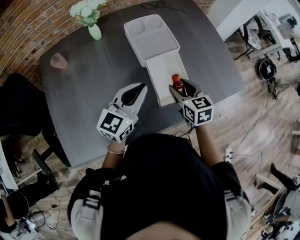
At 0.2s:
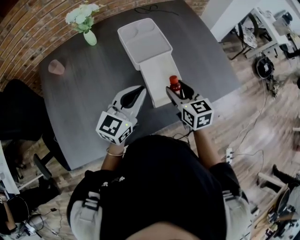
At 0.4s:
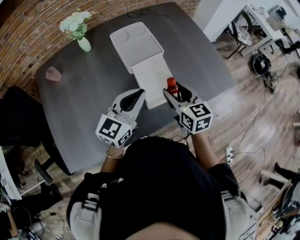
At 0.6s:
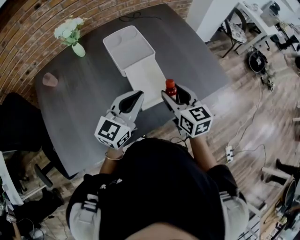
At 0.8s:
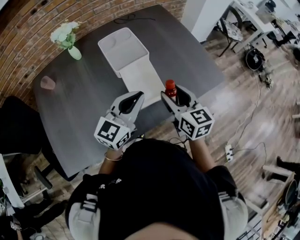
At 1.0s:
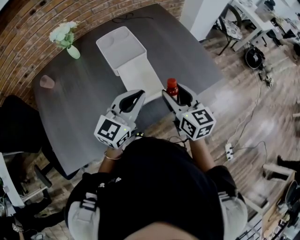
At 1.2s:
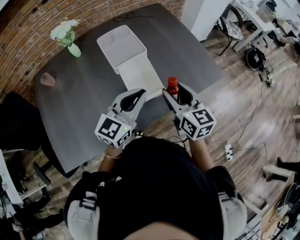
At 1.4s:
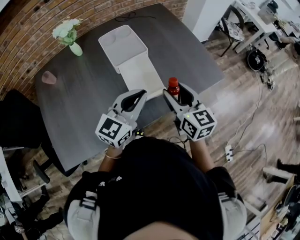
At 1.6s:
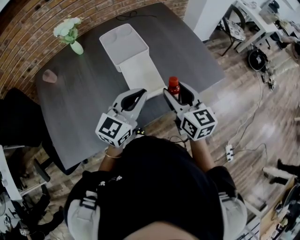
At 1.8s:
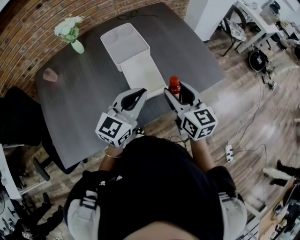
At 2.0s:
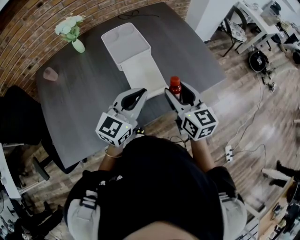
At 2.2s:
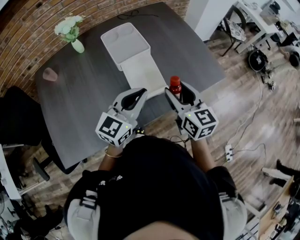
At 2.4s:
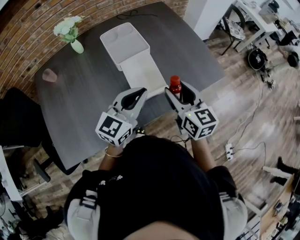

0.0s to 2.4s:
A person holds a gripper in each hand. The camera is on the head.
0.0s to 1.2s: The left gripper is displaced to the right by roughly 15 cm. Meanwhile the right gripper is displaced to the right, upward and backward by some 15 cm, and changes its angle by roughly 20 degrees.
1.2s to 2.4s: Neither gripper changes place.

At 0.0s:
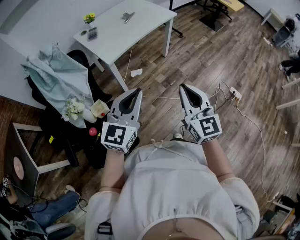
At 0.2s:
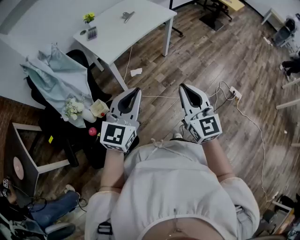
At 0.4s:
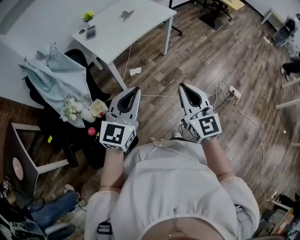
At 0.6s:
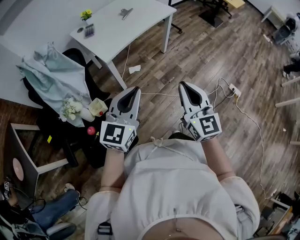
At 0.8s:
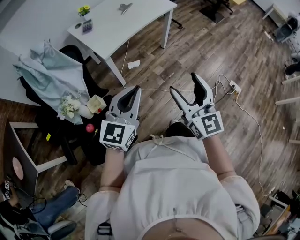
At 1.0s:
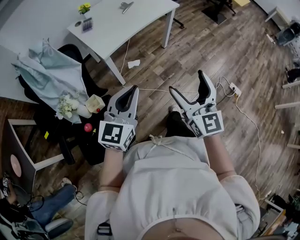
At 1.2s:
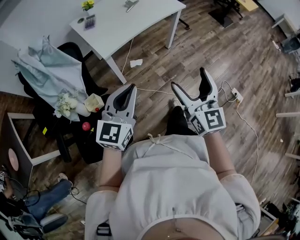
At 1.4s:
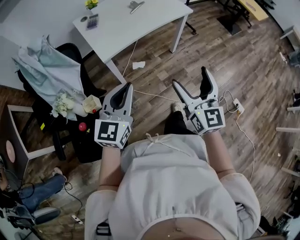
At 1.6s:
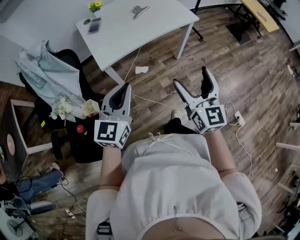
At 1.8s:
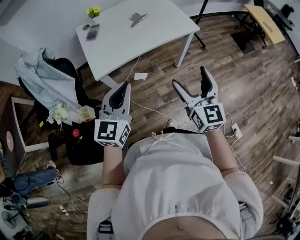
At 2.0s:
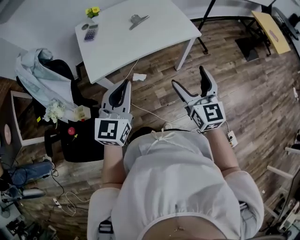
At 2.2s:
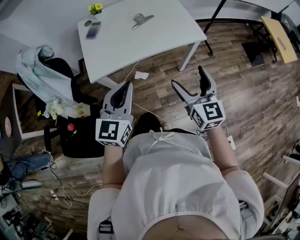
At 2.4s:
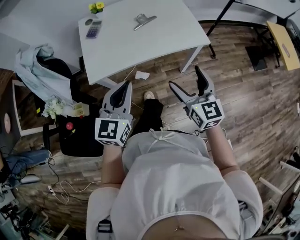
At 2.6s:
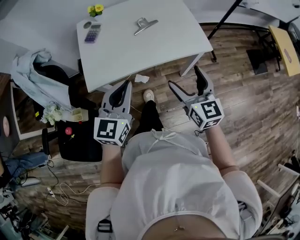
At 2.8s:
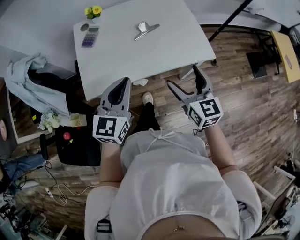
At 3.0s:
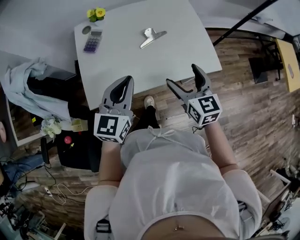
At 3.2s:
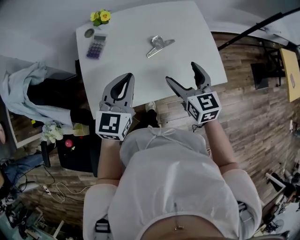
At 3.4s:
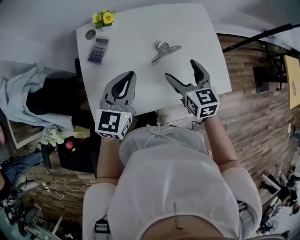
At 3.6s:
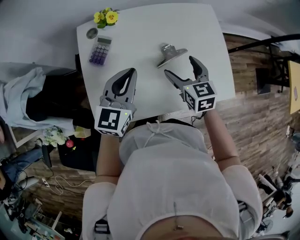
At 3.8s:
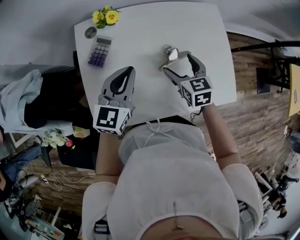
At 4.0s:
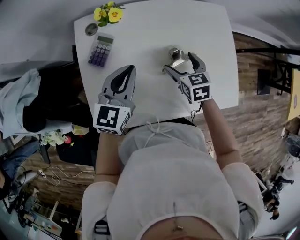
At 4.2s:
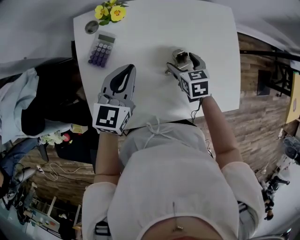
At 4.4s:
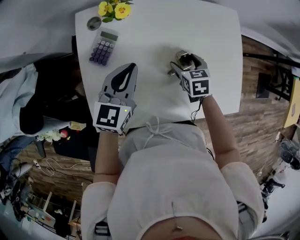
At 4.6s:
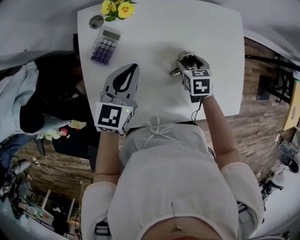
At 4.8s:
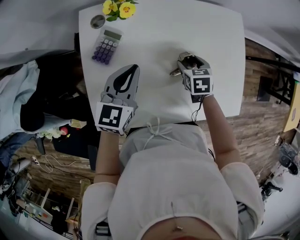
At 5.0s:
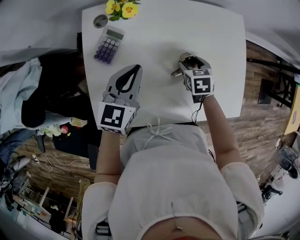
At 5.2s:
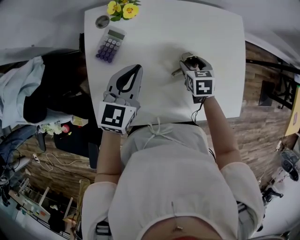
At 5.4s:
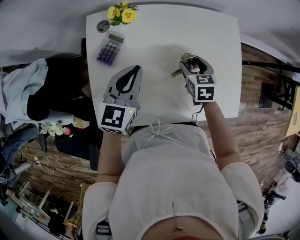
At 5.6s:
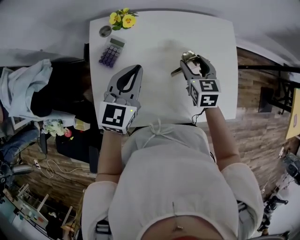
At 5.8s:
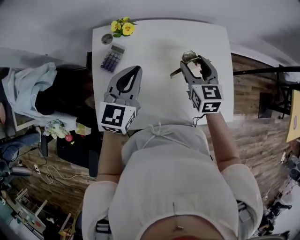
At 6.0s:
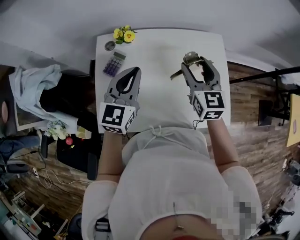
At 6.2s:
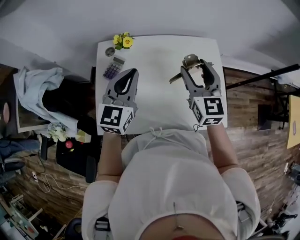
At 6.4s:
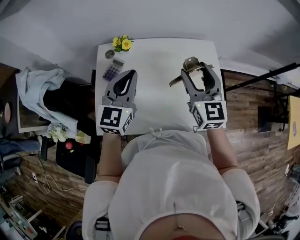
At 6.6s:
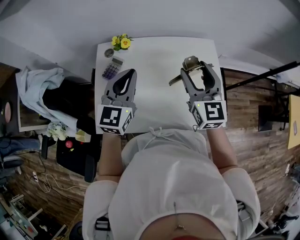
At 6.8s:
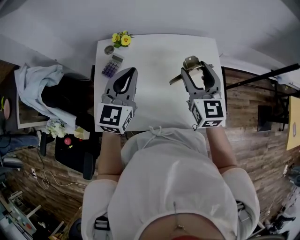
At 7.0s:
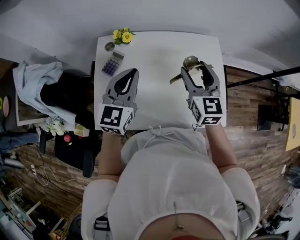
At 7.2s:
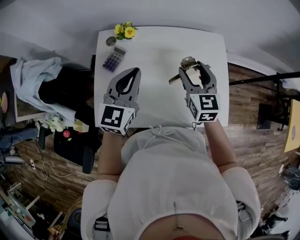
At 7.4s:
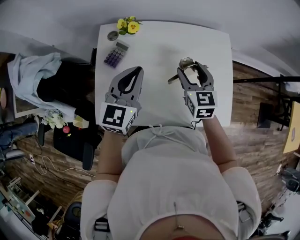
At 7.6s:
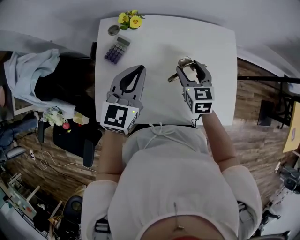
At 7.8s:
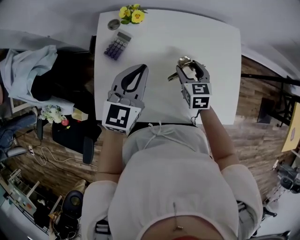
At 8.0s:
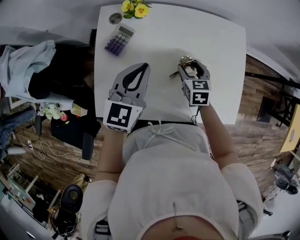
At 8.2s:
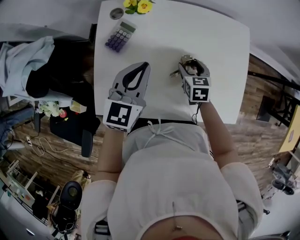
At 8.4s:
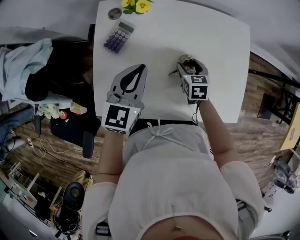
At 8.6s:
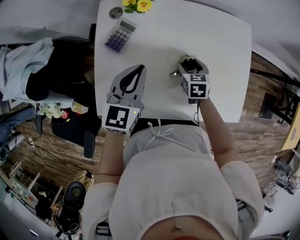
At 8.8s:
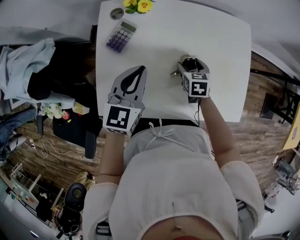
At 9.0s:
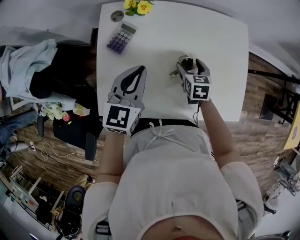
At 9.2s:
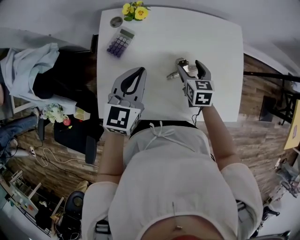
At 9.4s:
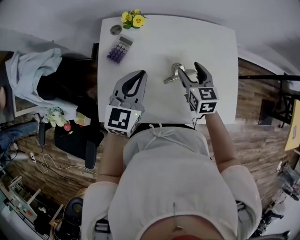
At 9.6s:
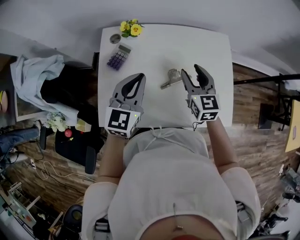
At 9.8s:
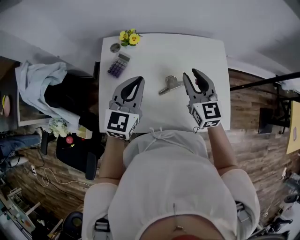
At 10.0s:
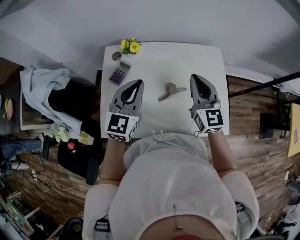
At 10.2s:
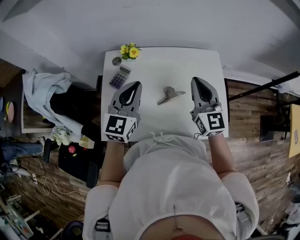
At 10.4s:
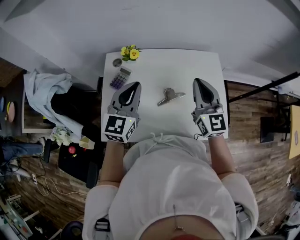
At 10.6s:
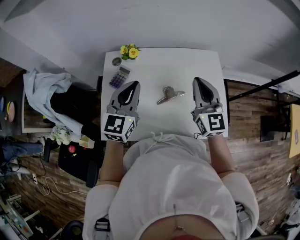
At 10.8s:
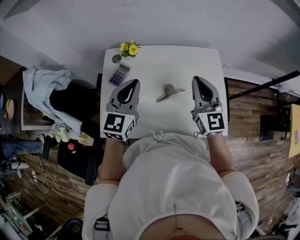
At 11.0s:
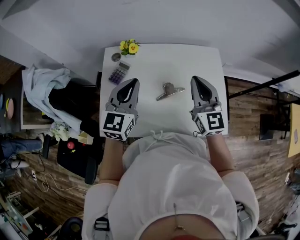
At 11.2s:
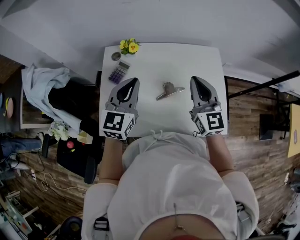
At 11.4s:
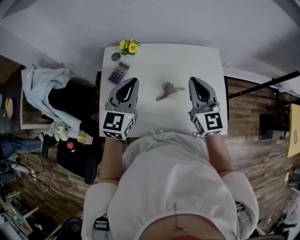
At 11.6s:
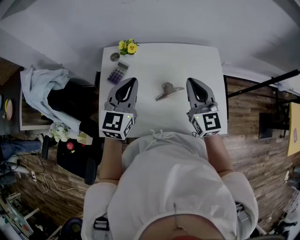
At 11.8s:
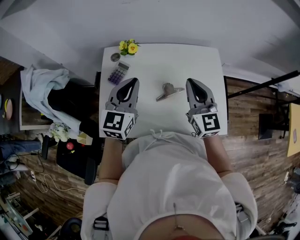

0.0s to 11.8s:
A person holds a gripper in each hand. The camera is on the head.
0.0s to 1.4s: Both grippers move forward, approximately 15 cm. The right gripper opens up.
1.4s to 3.0s: The two grippers travel together, forward, approximately 50 cm. The right gripper turns by some 40 degrees, while the left gripper rotates roughly 20 degrees.
3.0s to 4.4s: Both grippers travel together forward and downward, approximately 35 cm. The right gripper tips its fingers downward by roughly 40 degrees.
4.4s to 6.0s: The right gripper travels upward by about 25 cm, and tilts its fingers roughly 40 degrees upward. The left gripper shifts approximately 15 cm upward.
6.0s to 7.4s: The right gripper is displaced downward by some 10 cm.
7.4s to 8.8s: The left gripper shifts about 10 cm downward. The right gripper moves downward, roughly 20 cm, and changes its angle by some 30 degrees.
8.8s to 10.4s: The left gripper is displaced upward by roughly 15 cm; the right gripper shifts about 35 cm upward, tips its fingers upward by roughly 50 degrees, and closes.
10.4s to 11.8s: The grippers make only small movements.

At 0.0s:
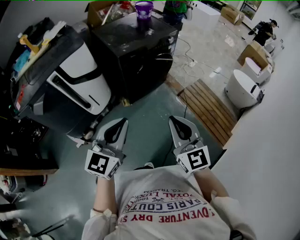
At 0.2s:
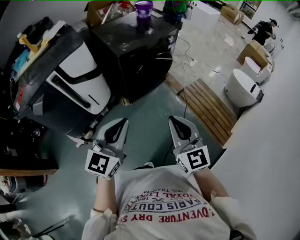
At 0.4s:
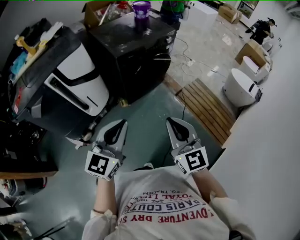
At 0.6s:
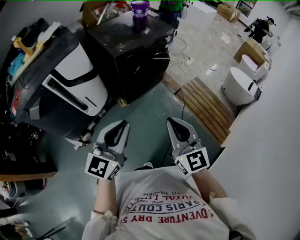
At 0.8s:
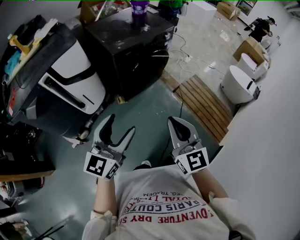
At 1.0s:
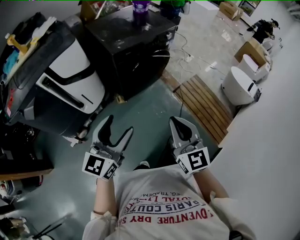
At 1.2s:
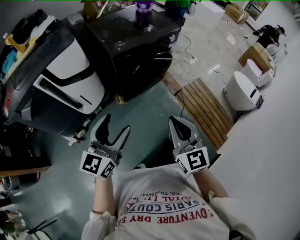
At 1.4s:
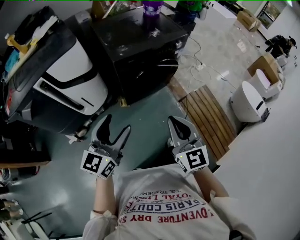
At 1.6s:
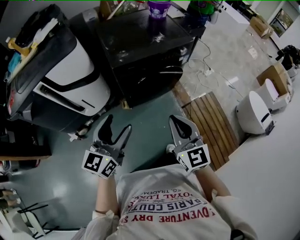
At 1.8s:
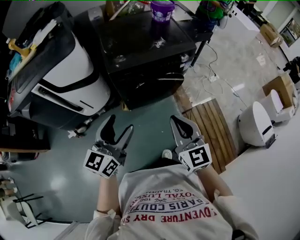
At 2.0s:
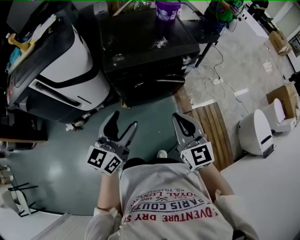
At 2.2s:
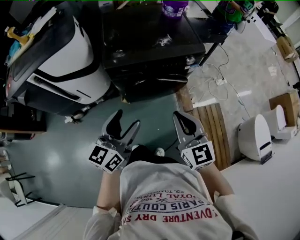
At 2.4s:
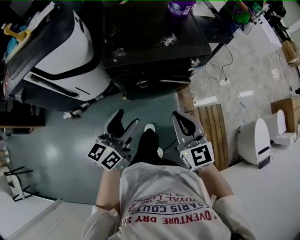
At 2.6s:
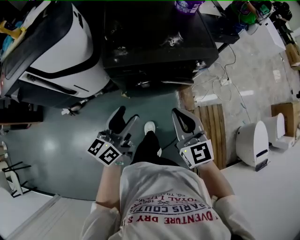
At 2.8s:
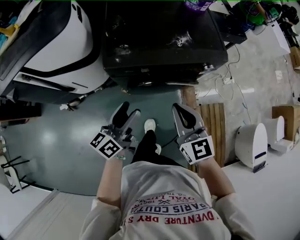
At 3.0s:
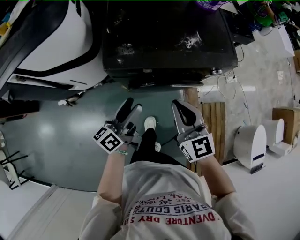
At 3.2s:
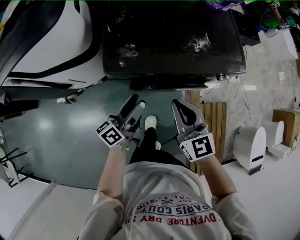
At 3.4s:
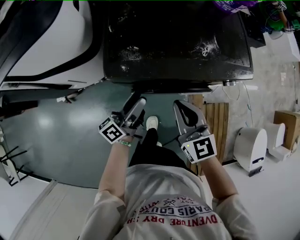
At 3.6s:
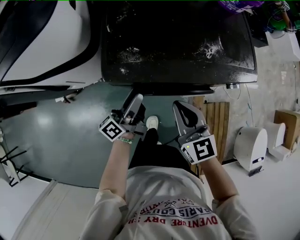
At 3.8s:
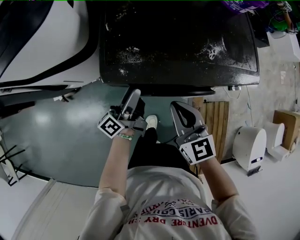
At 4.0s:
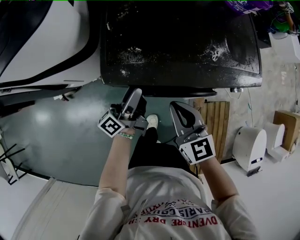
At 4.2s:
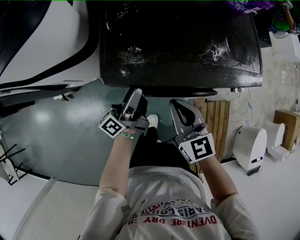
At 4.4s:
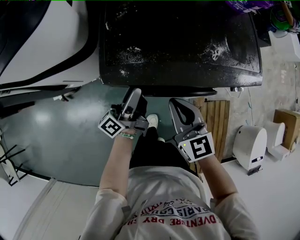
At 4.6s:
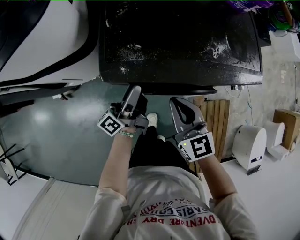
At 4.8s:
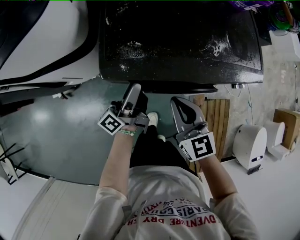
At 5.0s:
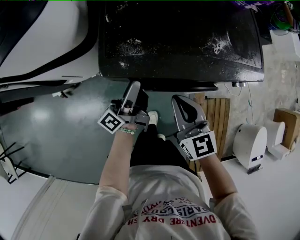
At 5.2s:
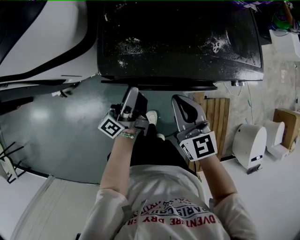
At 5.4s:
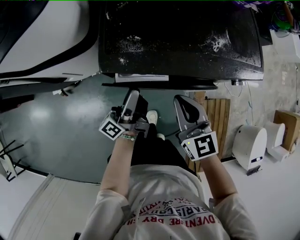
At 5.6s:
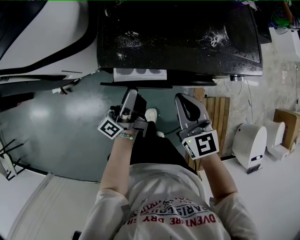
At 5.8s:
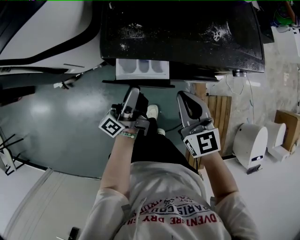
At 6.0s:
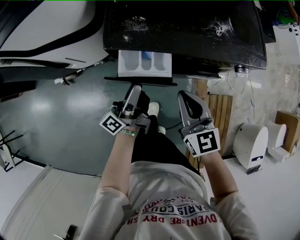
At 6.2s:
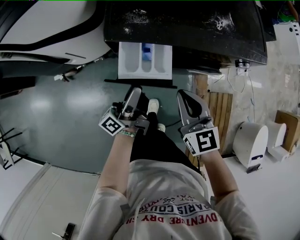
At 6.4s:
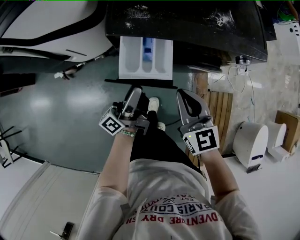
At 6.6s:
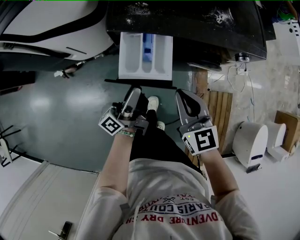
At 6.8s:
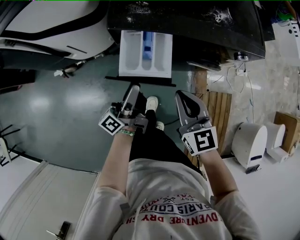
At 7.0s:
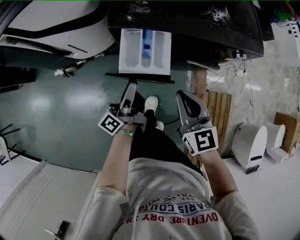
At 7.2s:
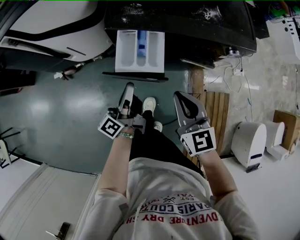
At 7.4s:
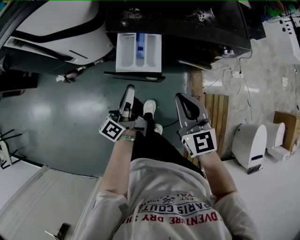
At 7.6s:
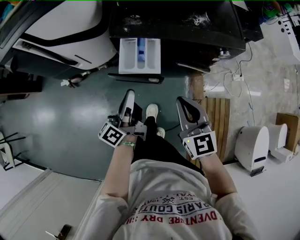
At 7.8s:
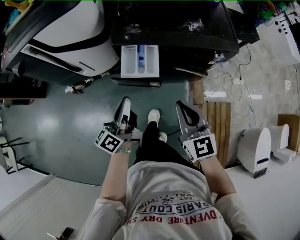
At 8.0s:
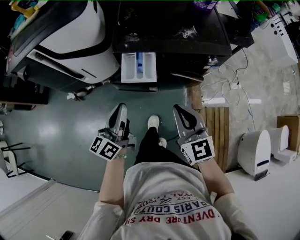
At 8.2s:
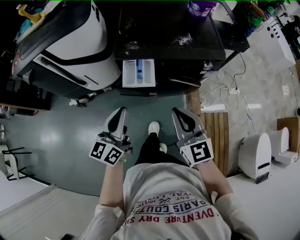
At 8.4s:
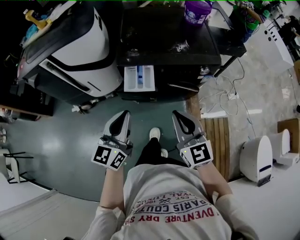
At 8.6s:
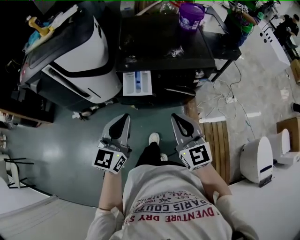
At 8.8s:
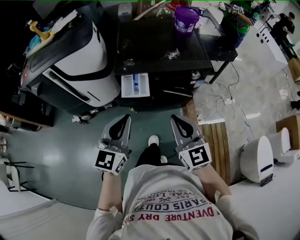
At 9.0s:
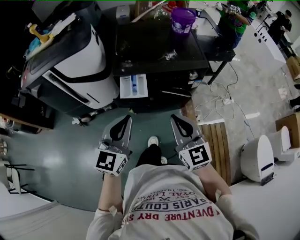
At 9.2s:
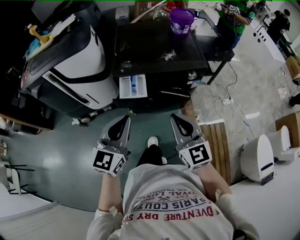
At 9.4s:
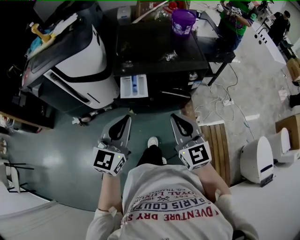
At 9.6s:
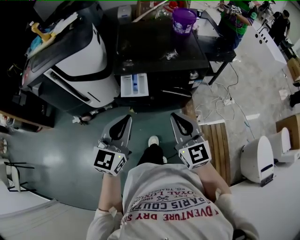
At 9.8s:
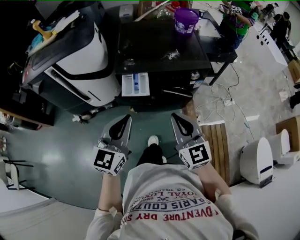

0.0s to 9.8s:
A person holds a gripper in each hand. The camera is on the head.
0.0s to 1.4s: The two grippers go roughly 15 cm forward. The left gripper opens.
1.4s to 2.8s: The right gripper moves forward and to the right, some 35 cm, and changes its angle by some 30 degrees; the left gripper travels forward, to the right and downward by roughly 35 cm, and turns by about 40 degrees.
2.8s to 4.2s: The left gripper moves forward and downward, roughly 20 cm, and changes its angle by approximately 30 degrees, while the right gripper goes approximately 20 cm downward, forward and to the left.
4.2s to 5.6s: The left gripper heads backward, covering some 5 cm.
5.6s to 7.0s: The grippers both shift backward by roughly 10 cm.
7.0s to 8.4s: The grippers both shift upward and backward by approximately 25 cm. The left gripper rolls clockwise, seen from behind, by roughly 60 degrees, and closes up.
8.4s to 9.8s: The left gripper moves roughly 5 cm. The right gripper shifts by about 5 cm.
